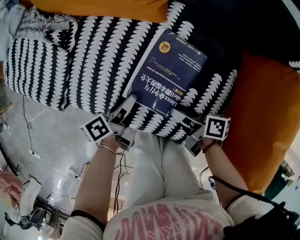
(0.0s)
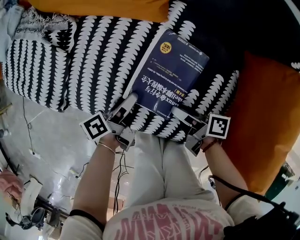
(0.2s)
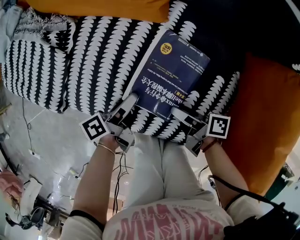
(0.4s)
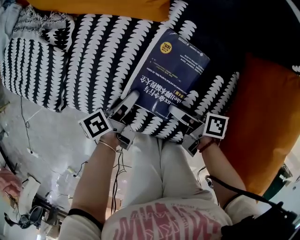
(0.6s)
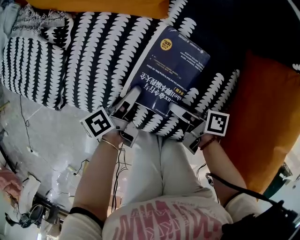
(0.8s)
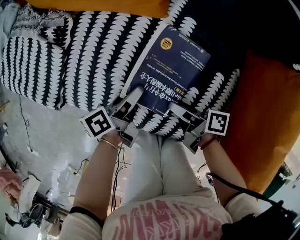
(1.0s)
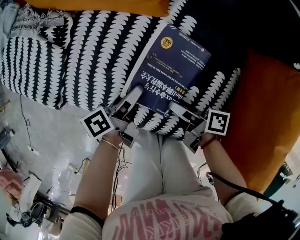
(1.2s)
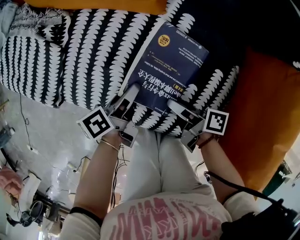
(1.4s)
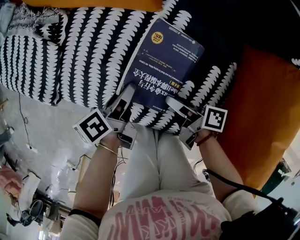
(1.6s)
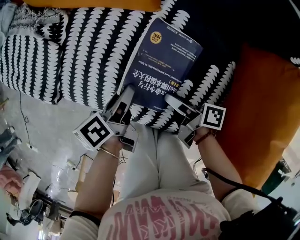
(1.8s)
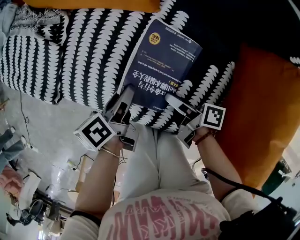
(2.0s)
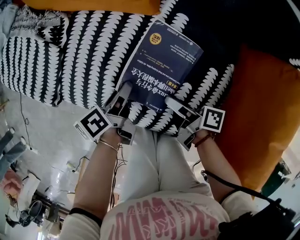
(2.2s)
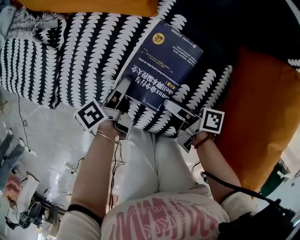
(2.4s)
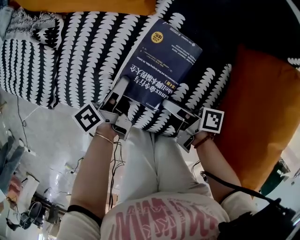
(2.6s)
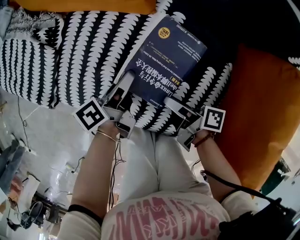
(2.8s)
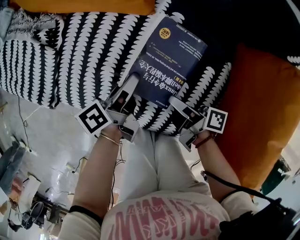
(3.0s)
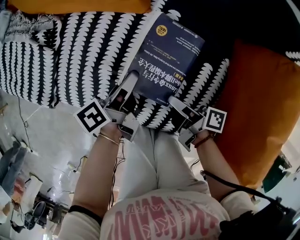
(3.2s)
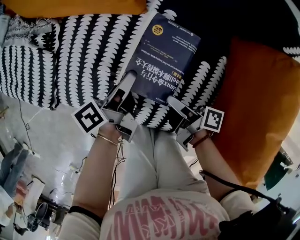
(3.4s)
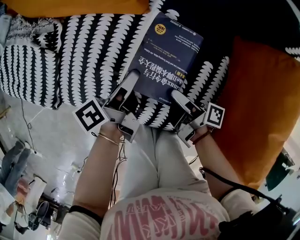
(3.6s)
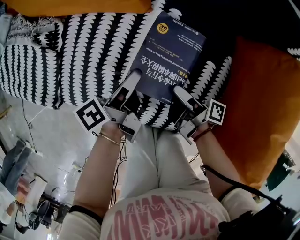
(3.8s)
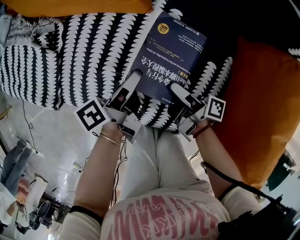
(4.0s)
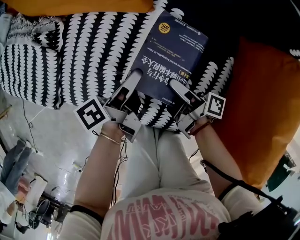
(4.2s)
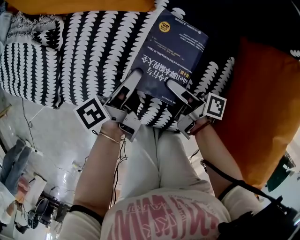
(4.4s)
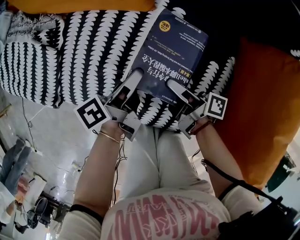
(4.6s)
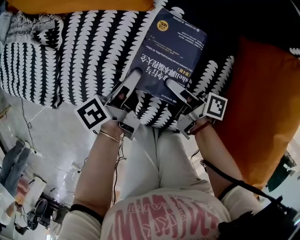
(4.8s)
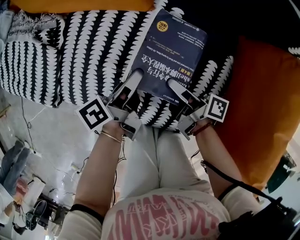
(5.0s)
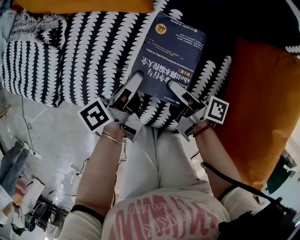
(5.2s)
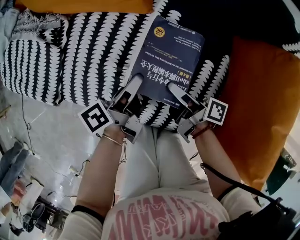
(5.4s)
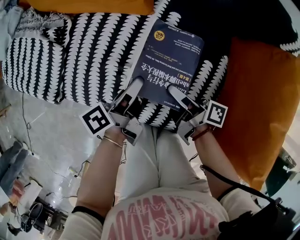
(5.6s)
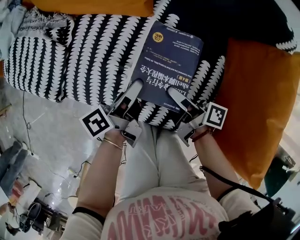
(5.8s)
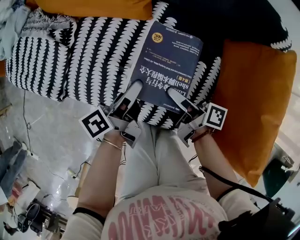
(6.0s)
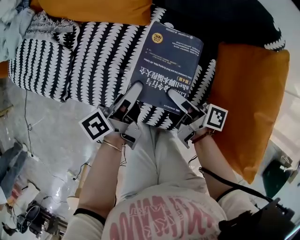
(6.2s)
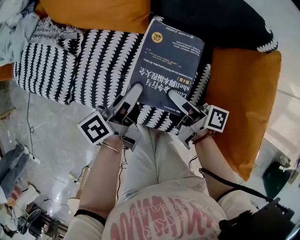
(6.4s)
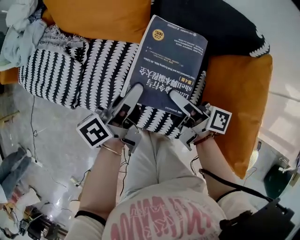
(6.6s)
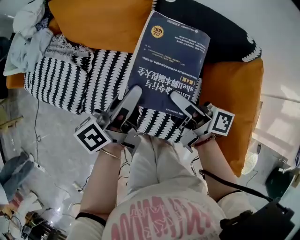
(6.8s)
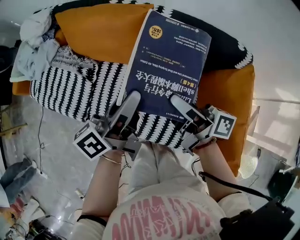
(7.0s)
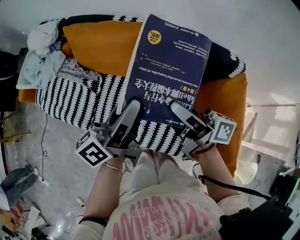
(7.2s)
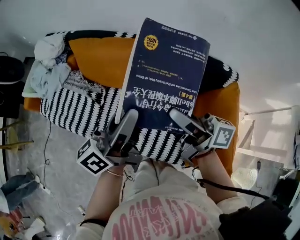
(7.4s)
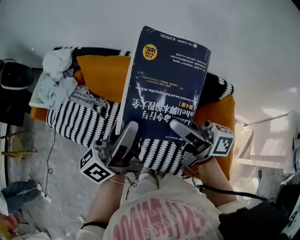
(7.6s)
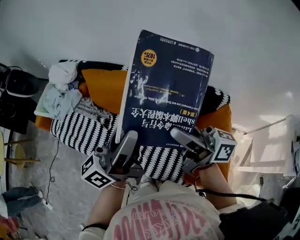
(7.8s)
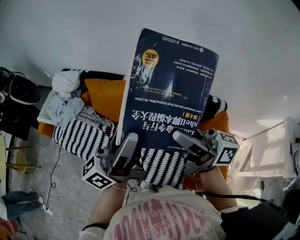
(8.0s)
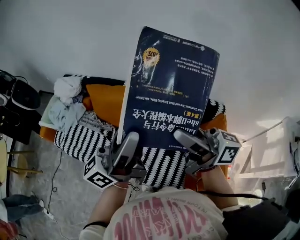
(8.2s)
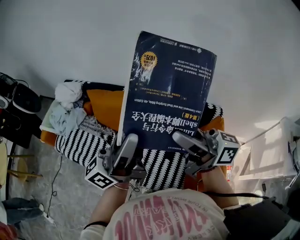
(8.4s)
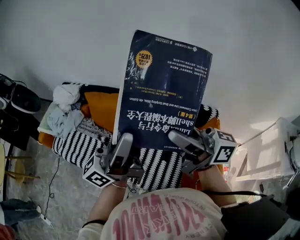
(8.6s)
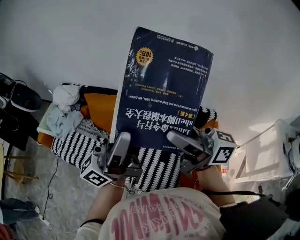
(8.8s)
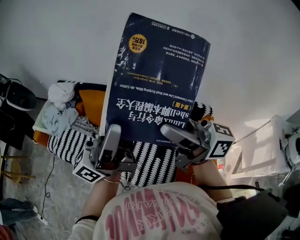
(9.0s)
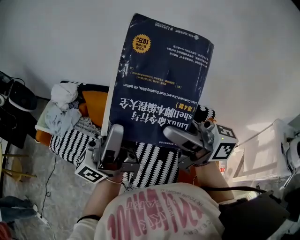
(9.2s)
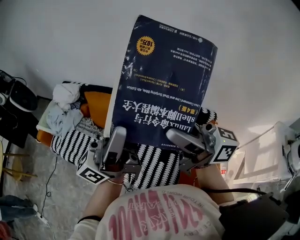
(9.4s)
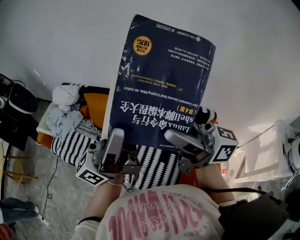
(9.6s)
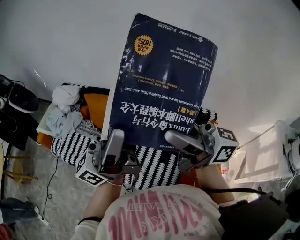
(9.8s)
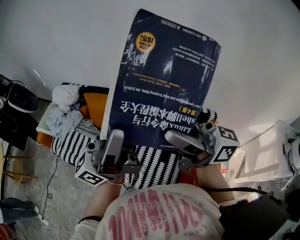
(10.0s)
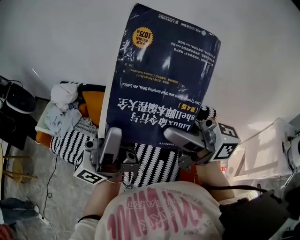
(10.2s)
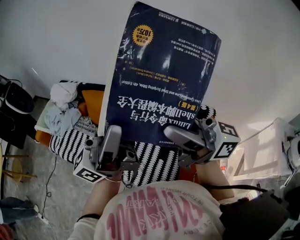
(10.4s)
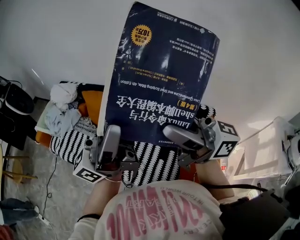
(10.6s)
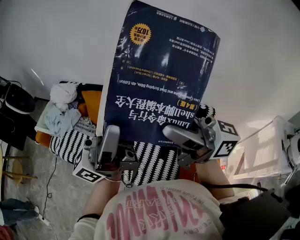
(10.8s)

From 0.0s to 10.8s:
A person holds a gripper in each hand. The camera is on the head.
From 1.6s to 3.0s: The left gripper changes place by roughly 5 cm.
From 7.8s to 9.2s: The left gripper rotates about 20 degrees.

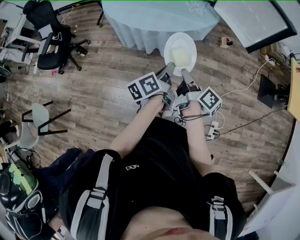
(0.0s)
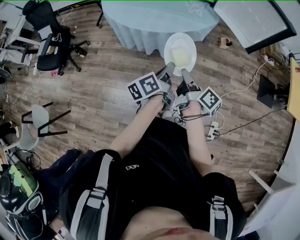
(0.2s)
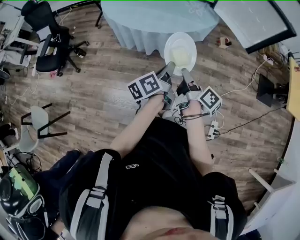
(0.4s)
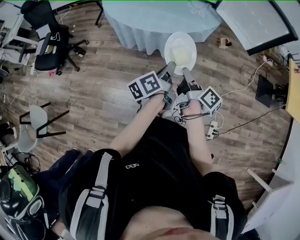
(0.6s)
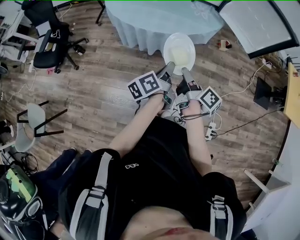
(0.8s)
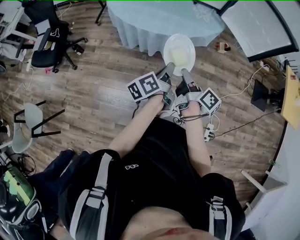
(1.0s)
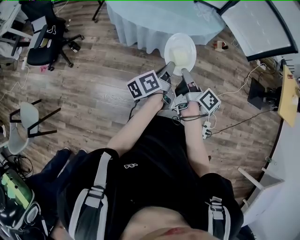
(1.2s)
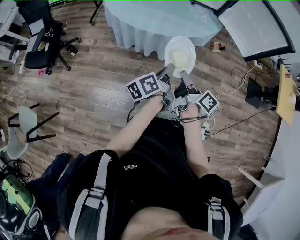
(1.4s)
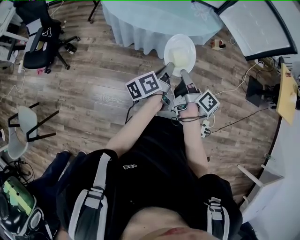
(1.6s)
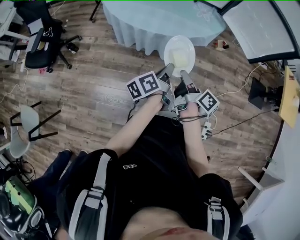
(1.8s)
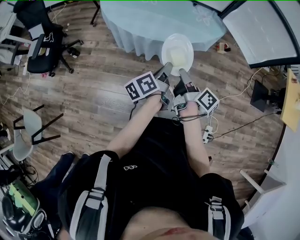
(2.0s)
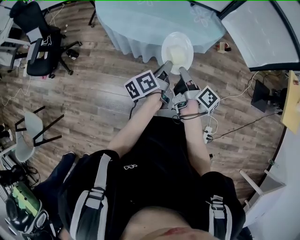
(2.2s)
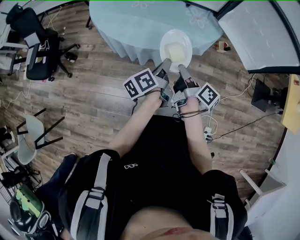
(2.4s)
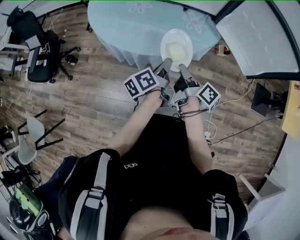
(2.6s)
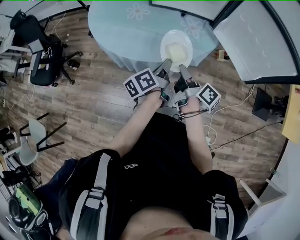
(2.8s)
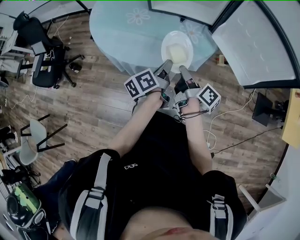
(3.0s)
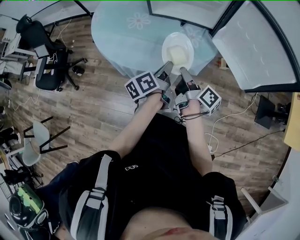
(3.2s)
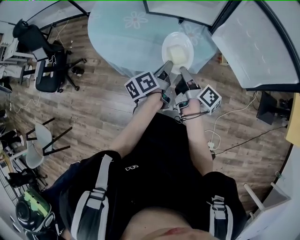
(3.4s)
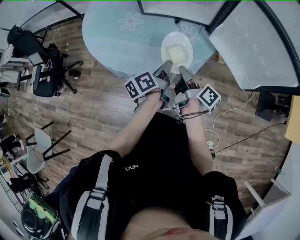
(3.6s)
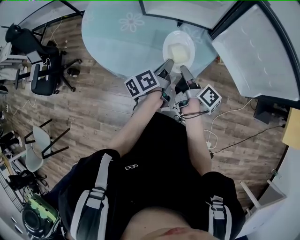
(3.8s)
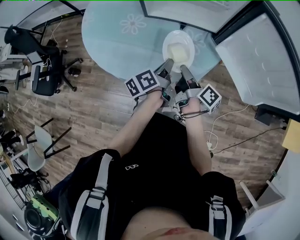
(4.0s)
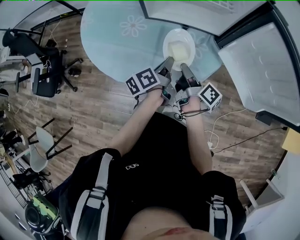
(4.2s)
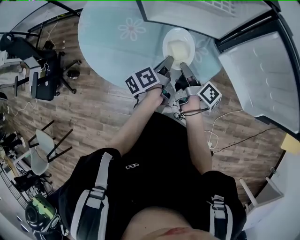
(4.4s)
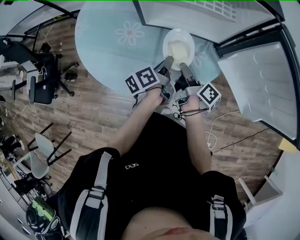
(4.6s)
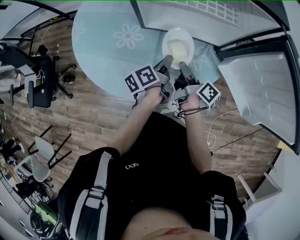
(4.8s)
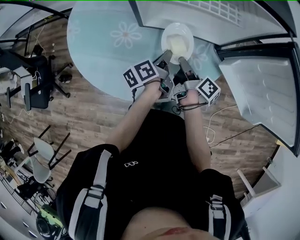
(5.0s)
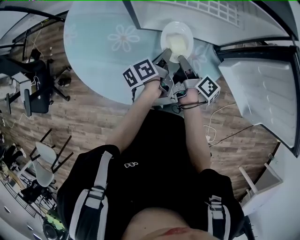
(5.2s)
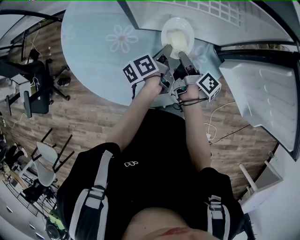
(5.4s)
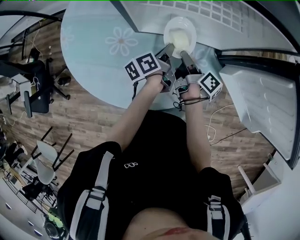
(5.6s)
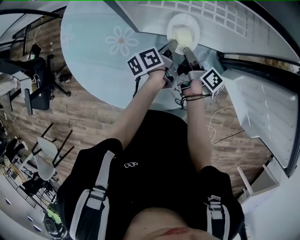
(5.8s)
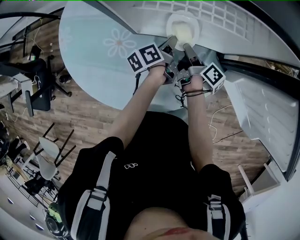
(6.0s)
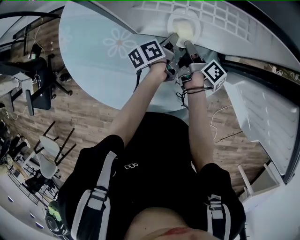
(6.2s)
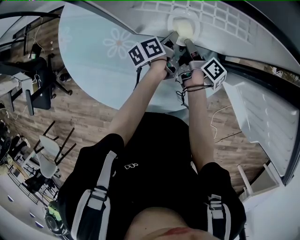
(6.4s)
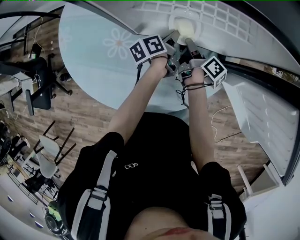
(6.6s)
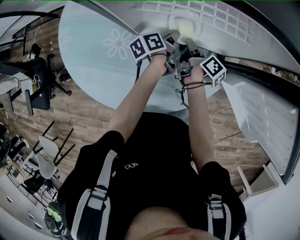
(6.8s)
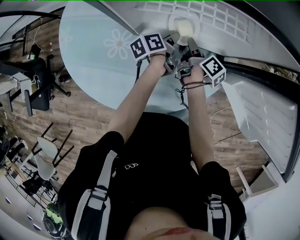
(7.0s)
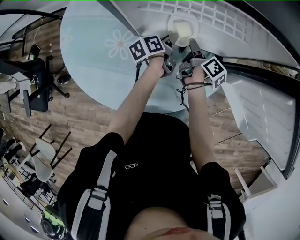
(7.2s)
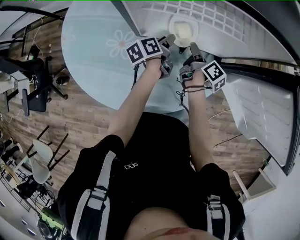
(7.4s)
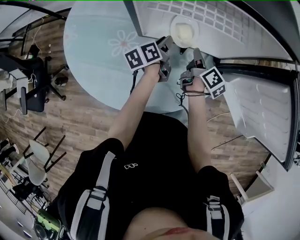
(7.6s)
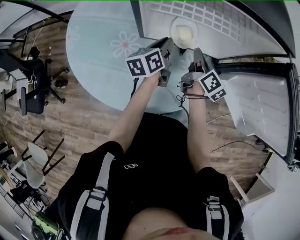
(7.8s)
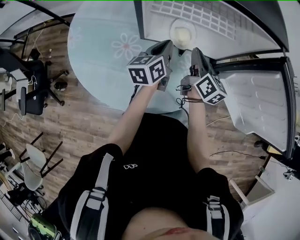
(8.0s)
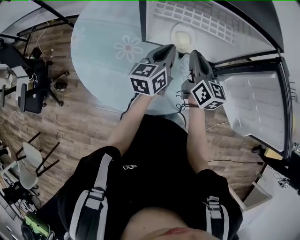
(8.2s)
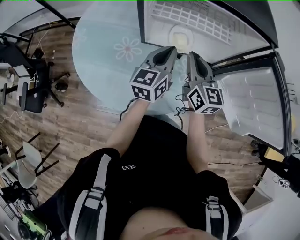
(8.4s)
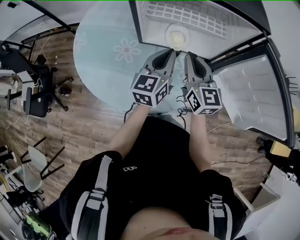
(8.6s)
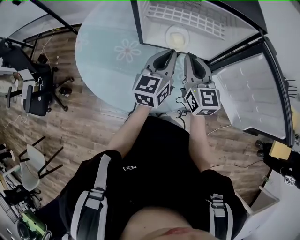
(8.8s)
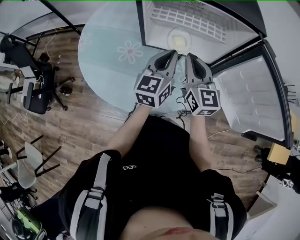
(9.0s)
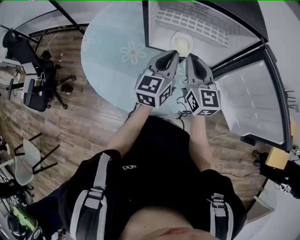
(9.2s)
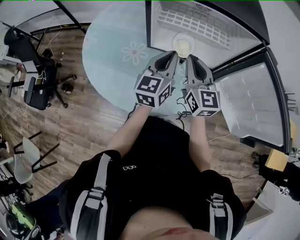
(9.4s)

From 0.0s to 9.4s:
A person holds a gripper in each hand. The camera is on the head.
From 0.0s to 1.6s: The left gripper changes place by some 5 cm.
From 1.6s to 3.2s: The left gripper shifts by approximately 25 cm.
From 3.2s to 4.8s: The left gripper ends up about 25 cm from where it was.
From 4.8s to 6.2s: The left gripper changes place by about 15 cm.
From 6.2s to 7.8s: The left gripper heads upward, covering roughly 10 cm, swivels roughly 30 degrees, and opens, then closes once more.
From 7.8s to 9.4s: The left gripper moves upward, approximately 15 cm, and rotates approximately 40 degrees.

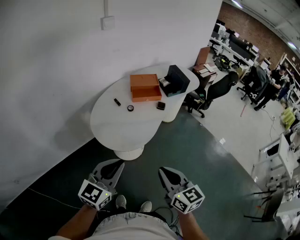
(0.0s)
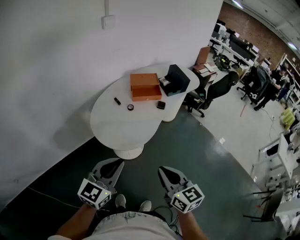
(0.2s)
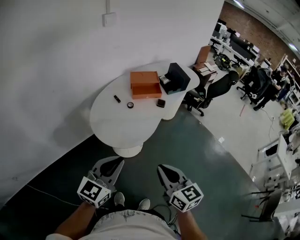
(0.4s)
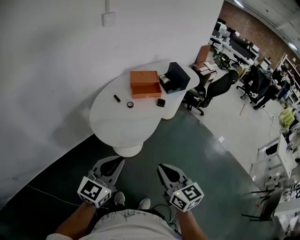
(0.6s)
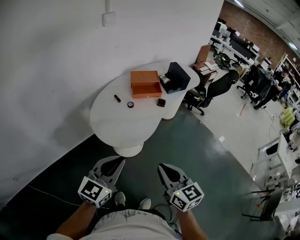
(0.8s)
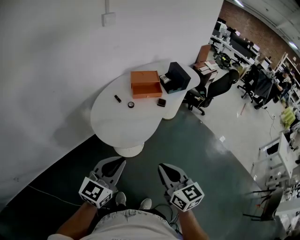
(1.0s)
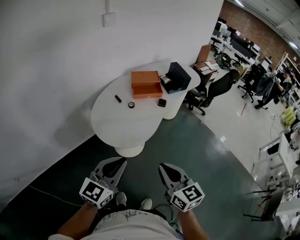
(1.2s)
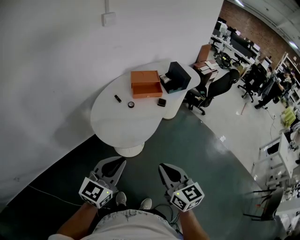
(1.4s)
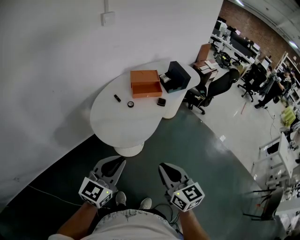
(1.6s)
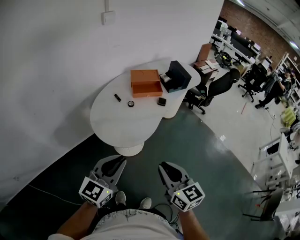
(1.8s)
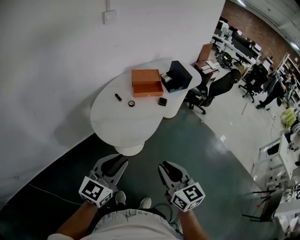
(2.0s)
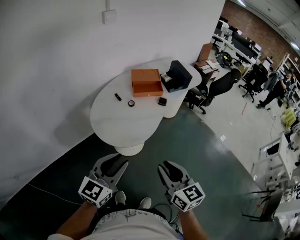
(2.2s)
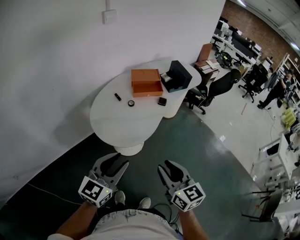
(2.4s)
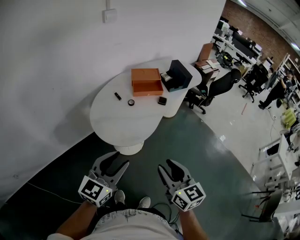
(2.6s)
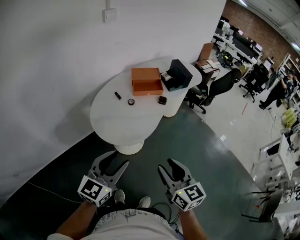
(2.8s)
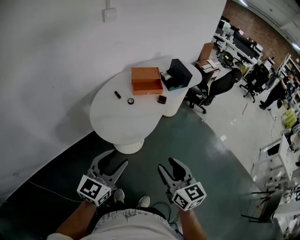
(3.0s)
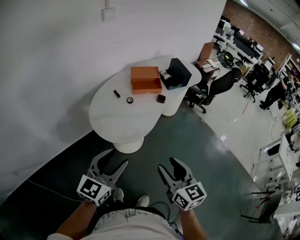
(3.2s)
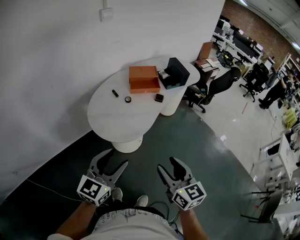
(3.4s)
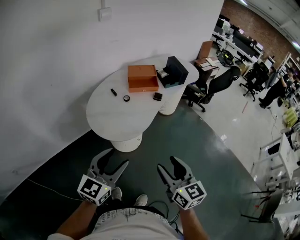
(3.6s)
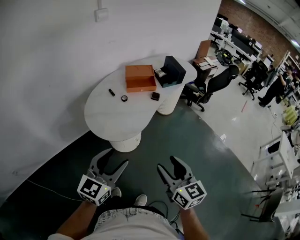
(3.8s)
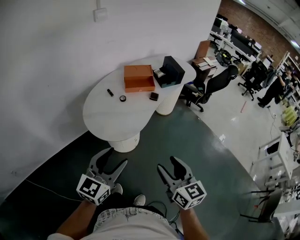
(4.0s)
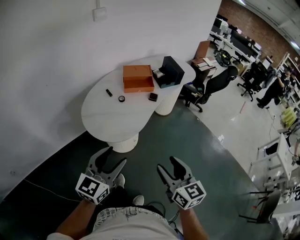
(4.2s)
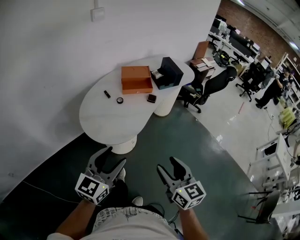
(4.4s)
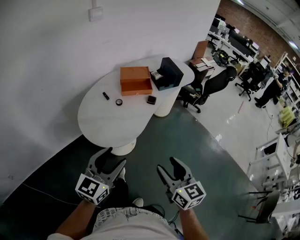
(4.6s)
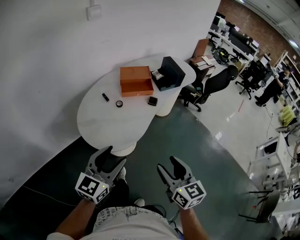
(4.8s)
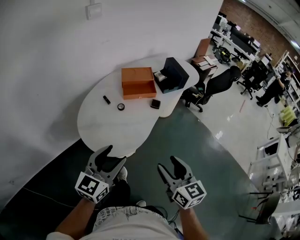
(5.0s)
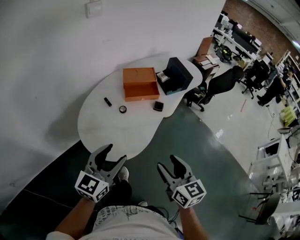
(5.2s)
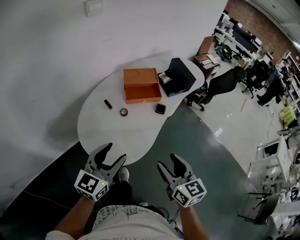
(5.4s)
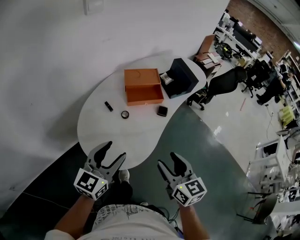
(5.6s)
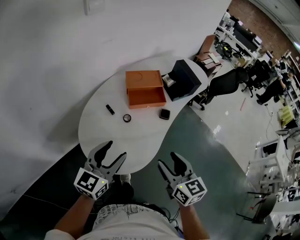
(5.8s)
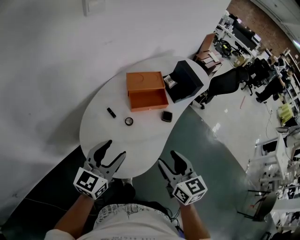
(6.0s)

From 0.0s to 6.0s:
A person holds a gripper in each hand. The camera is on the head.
From 0.0s to 1.6s: The two grippers keep their place.
From 1.6s to 3.0s: The left gripper opens its fingers. The right gripper opens up.
From 3.0s to 4.4s: The two grippers go approximately 5 cm to the right.
From 4.4s to 6.0s: Both grippers move forward and to the left, some 30 cm.
